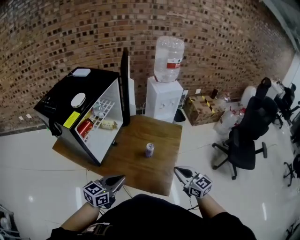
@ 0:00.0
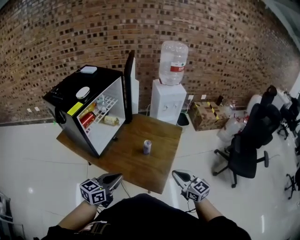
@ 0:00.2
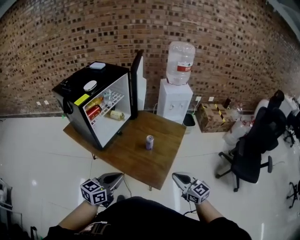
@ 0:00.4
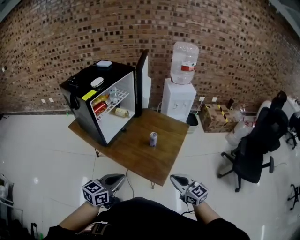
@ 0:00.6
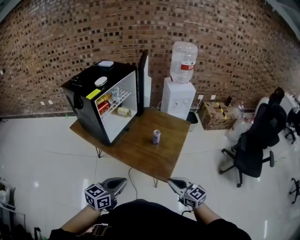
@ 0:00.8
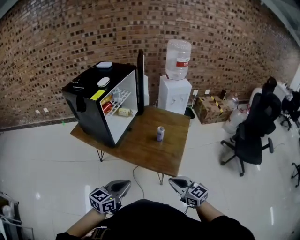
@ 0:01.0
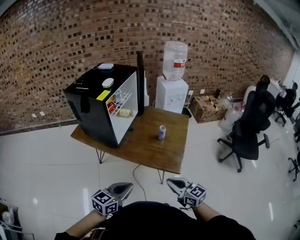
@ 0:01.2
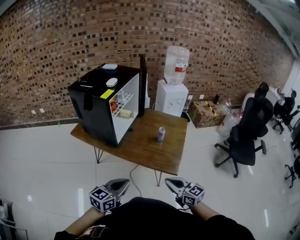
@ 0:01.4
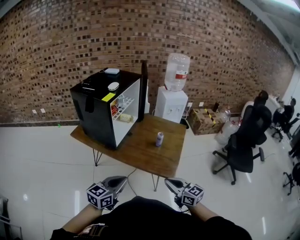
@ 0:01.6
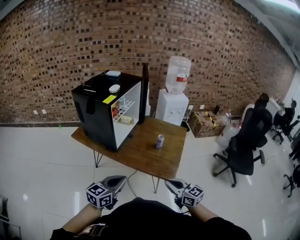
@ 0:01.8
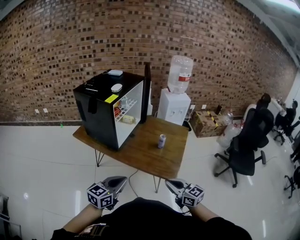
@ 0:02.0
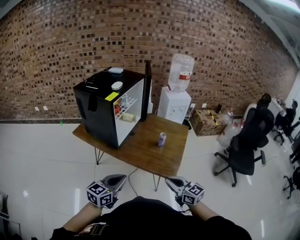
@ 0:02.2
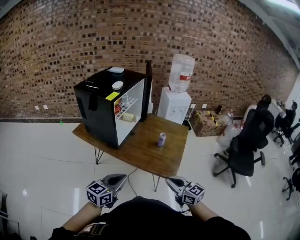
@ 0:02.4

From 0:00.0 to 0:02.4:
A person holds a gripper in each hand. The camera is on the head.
From 0:00.0 to 0:01.2: The right gripper is displaced backward and to the left by roughly 30 cm. The left gripper shifts roughly 25 cm backward.
From 0:01.2 to 0:02.4: There are only small adjustments of the grippers.

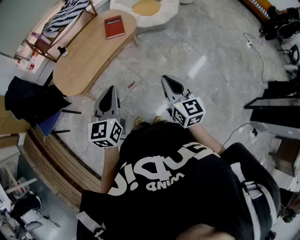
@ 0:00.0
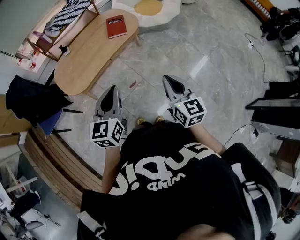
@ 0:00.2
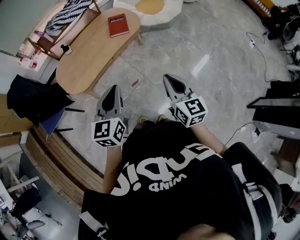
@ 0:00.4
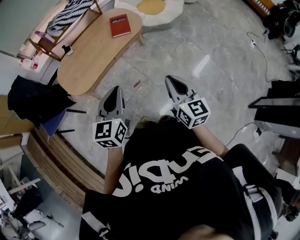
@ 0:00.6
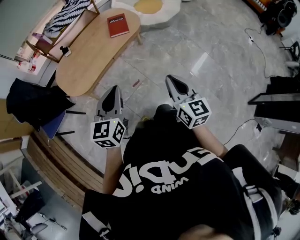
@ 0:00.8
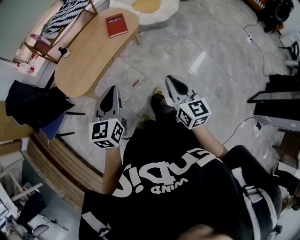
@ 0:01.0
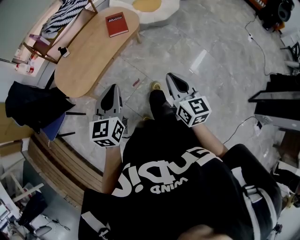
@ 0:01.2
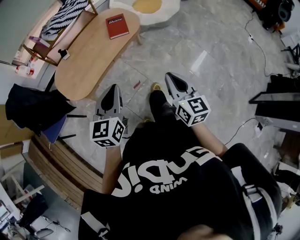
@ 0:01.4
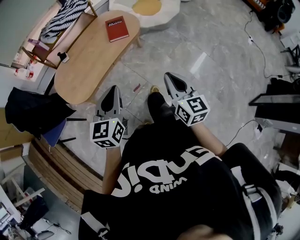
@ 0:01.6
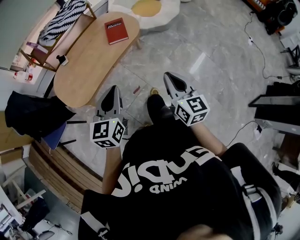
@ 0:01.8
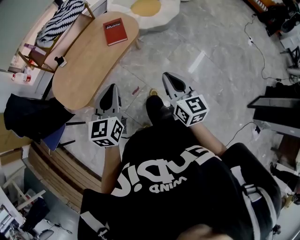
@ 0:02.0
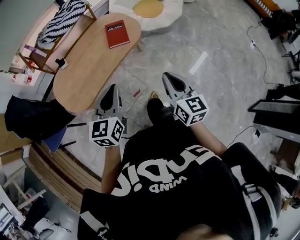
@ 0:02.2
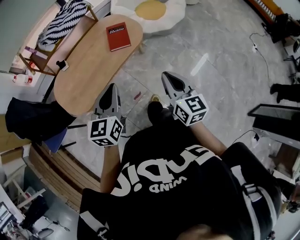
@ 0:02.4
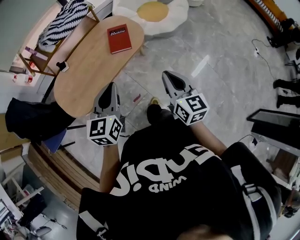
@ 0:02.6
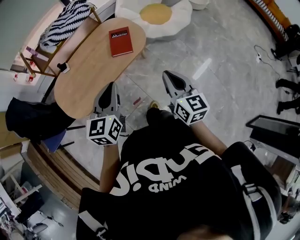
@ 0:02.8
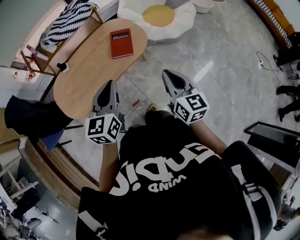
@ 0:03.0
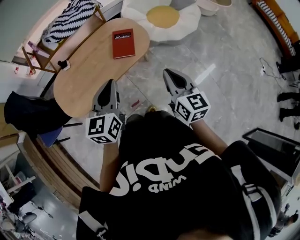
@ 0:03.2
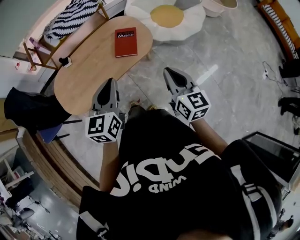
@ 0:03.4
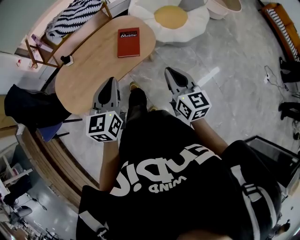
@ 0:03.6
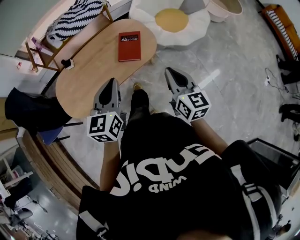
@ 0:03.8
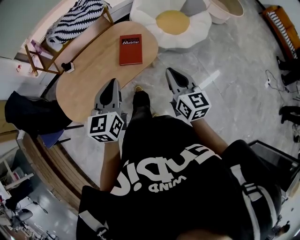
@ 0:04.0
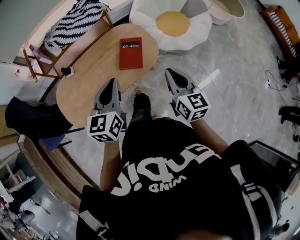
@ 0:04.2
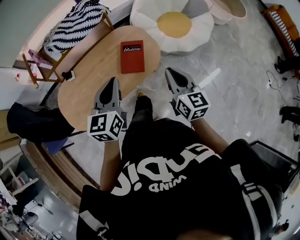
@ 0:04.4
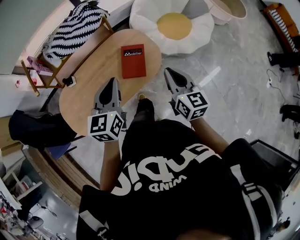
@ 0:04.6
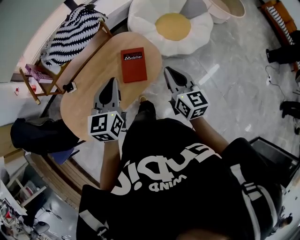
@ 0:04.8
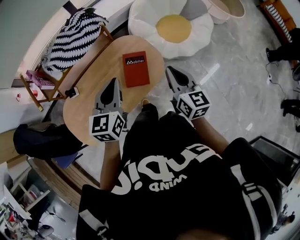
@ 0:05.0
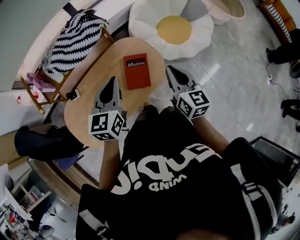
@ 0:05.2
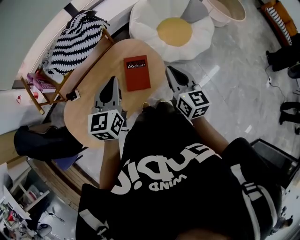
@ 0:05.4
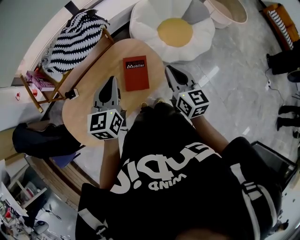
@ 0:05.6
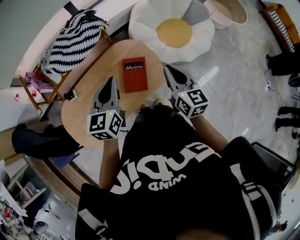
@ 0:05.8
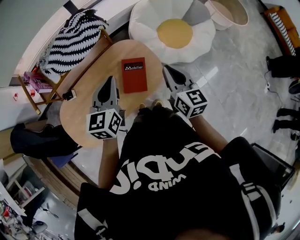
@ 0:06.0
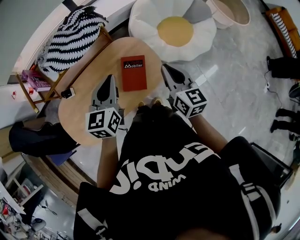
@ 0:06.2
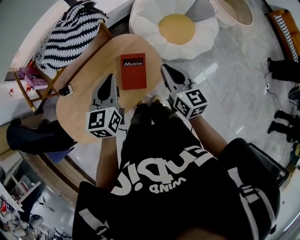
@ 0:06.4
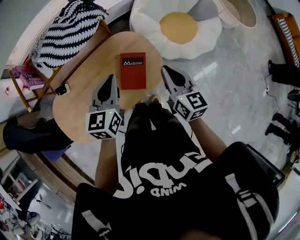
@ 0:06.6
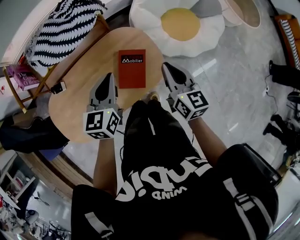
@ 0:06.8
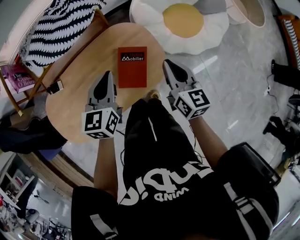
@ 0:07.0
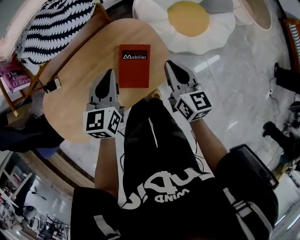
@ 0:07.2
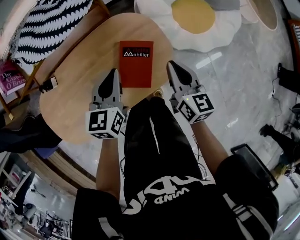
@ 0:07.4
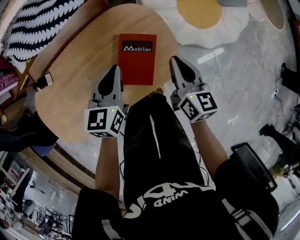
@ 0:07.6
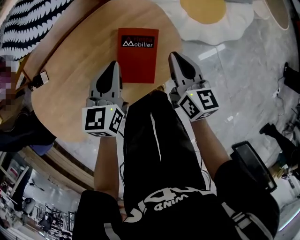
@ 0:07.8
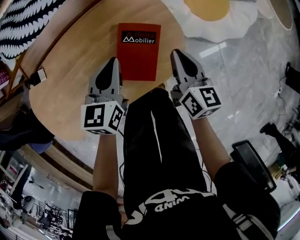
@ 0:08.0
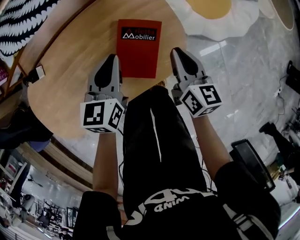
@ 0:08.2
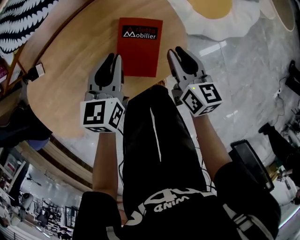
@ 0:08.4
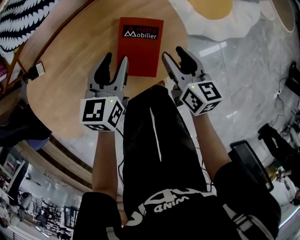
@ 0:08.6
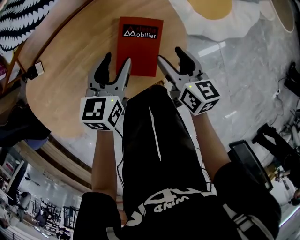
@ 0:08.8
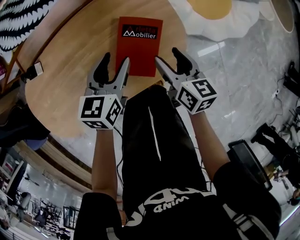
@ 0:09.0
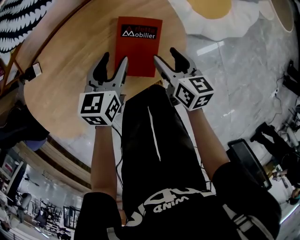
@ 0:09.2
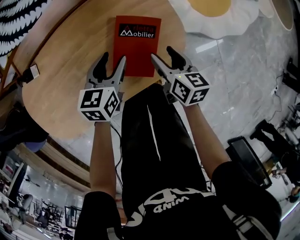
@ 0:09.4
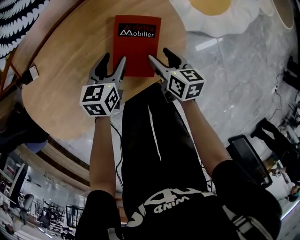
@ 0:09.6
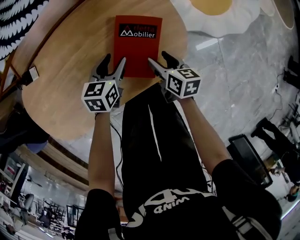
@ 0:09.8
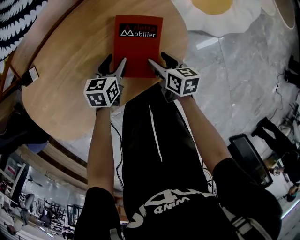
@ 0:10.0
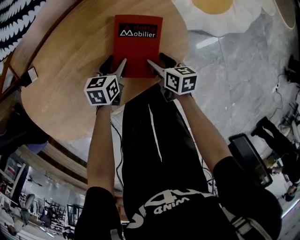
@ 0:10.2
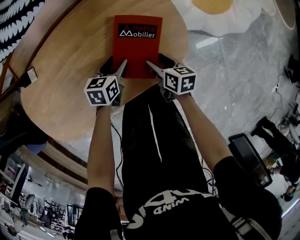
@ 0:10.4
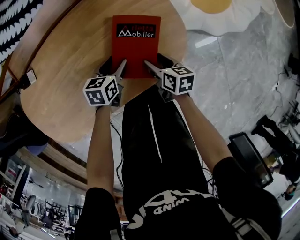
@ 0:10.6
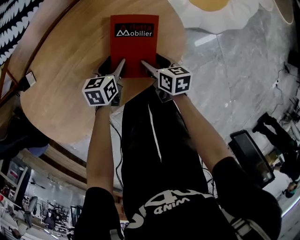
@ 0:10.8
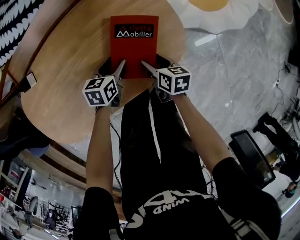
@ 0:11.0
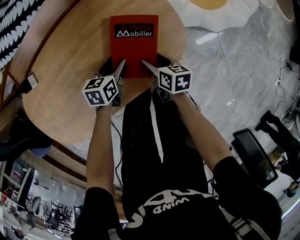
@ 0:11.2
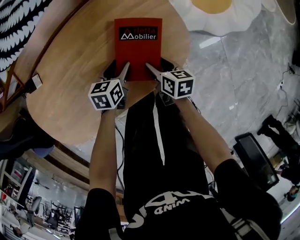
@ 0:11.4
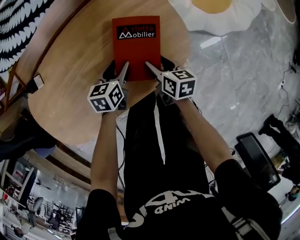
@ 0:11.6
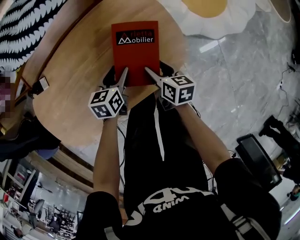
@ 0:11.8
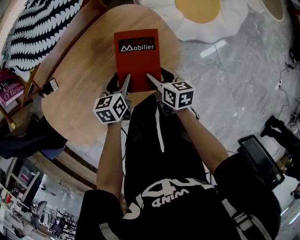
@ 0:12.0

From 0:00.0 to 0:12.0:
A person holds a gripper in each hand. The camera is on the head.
From 0:00.0 to 0:01.6: The left gripper goes about 10 cm forward and to the left; the right gripper is displaced forward by about 5 cm.
From 0:01.6 to 0:03.0: The grippers both shift forward by roughly 25 cm.
From 0:03.0 to 0:04.4: The two grippers go some 20 cm forward.
From 0:04.4 to 0:06.0: Both grippers move forward, some 15 cm.
From 0:06.0 to 0:07.6: Both grippers move downward, about 25 cm.
From 0:07.6 to 0:09.0: The grippers both shift downward by some 10 cm. The right gripper opens up, while the left gripper opens.
From 0:09.0 to 0:10.4: The grippers both shift downward by about 15 cm. The left gripper swivels about 20 degrees. The right gripper swivels about 20 degrees.
From 0:10.4 to 0:12.0: Both grippers move upward, about 10 cm.

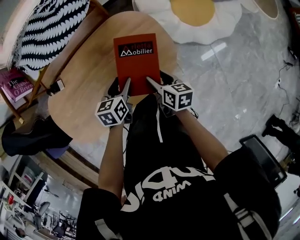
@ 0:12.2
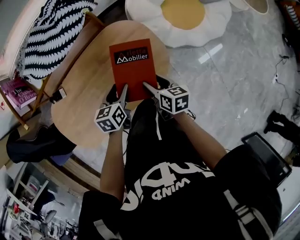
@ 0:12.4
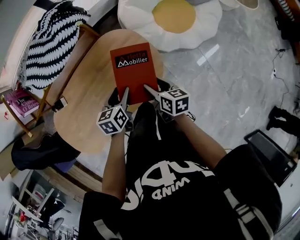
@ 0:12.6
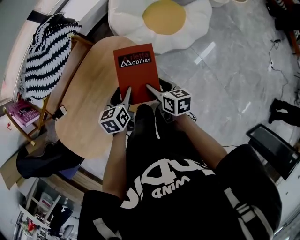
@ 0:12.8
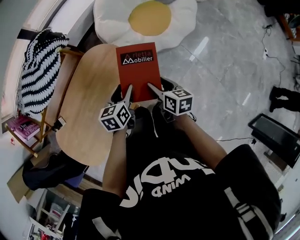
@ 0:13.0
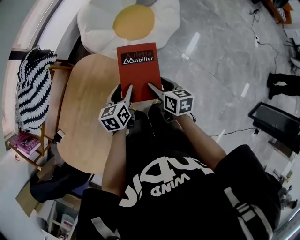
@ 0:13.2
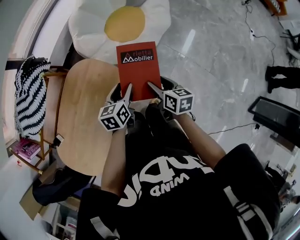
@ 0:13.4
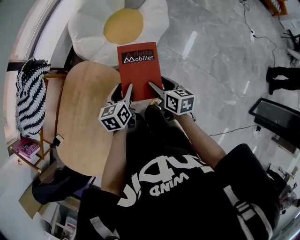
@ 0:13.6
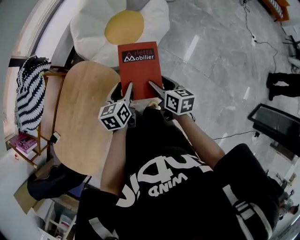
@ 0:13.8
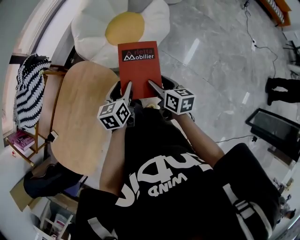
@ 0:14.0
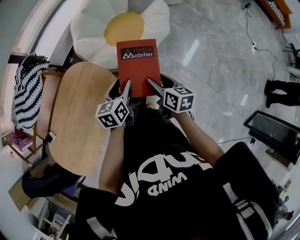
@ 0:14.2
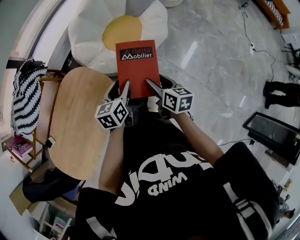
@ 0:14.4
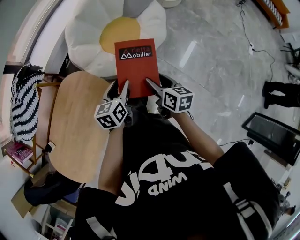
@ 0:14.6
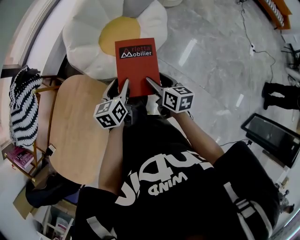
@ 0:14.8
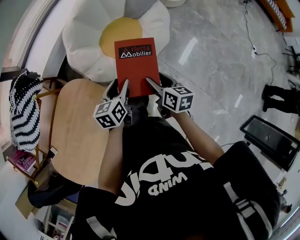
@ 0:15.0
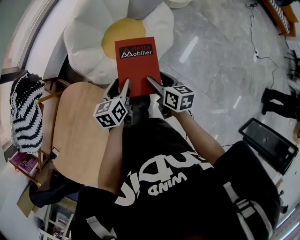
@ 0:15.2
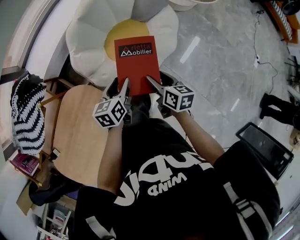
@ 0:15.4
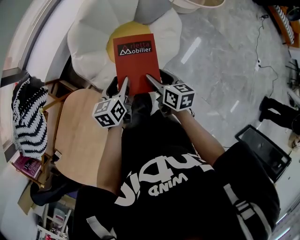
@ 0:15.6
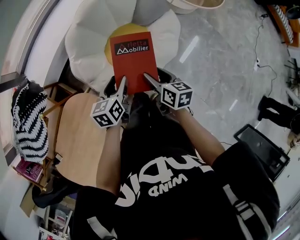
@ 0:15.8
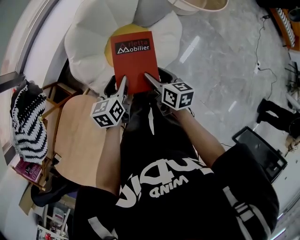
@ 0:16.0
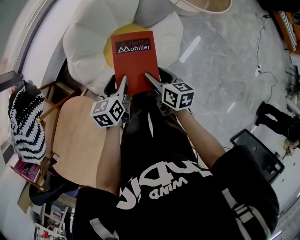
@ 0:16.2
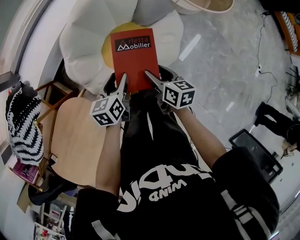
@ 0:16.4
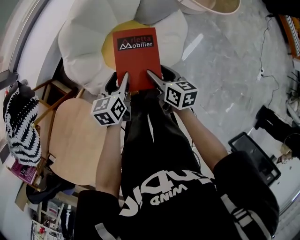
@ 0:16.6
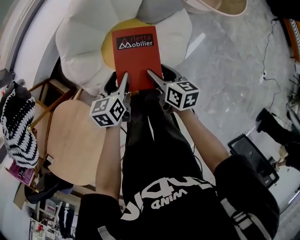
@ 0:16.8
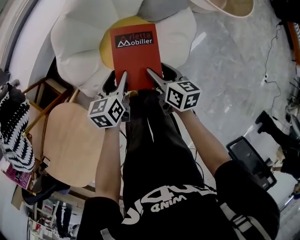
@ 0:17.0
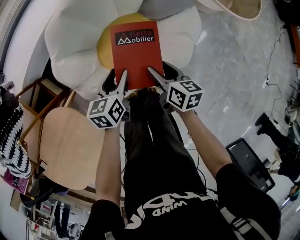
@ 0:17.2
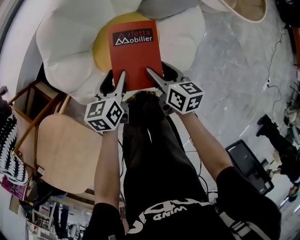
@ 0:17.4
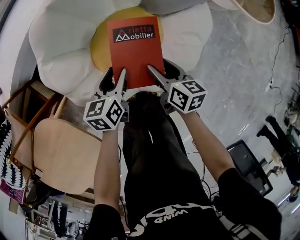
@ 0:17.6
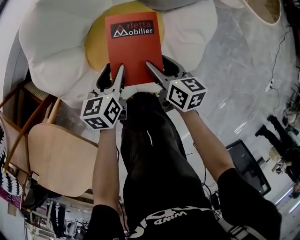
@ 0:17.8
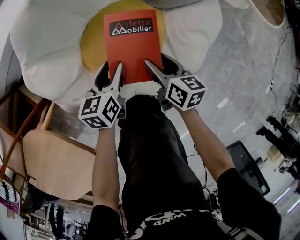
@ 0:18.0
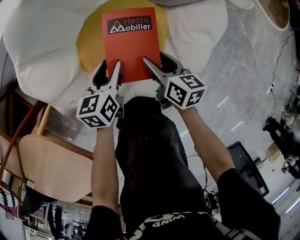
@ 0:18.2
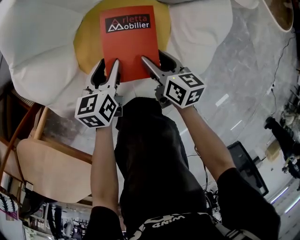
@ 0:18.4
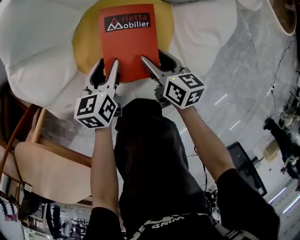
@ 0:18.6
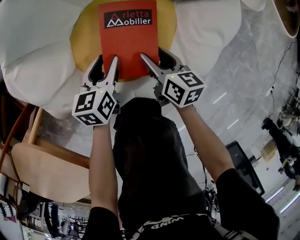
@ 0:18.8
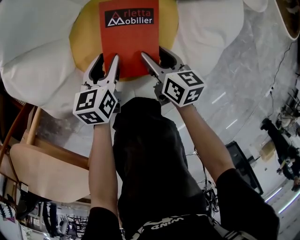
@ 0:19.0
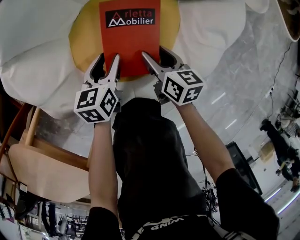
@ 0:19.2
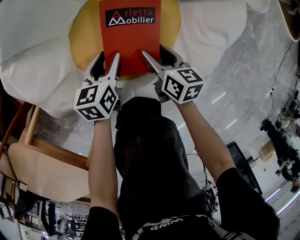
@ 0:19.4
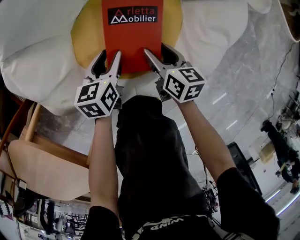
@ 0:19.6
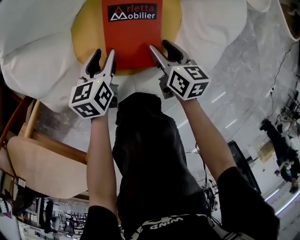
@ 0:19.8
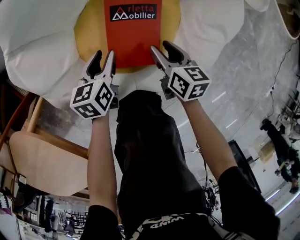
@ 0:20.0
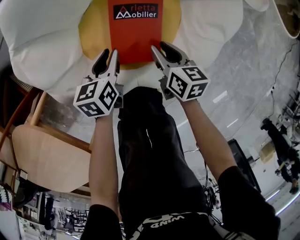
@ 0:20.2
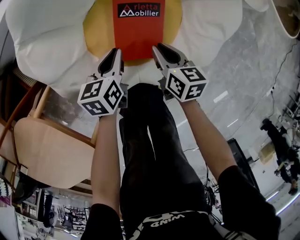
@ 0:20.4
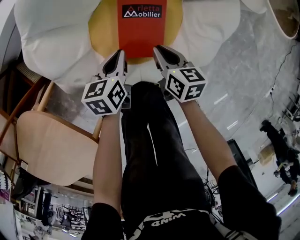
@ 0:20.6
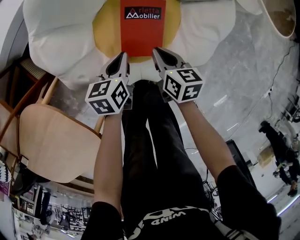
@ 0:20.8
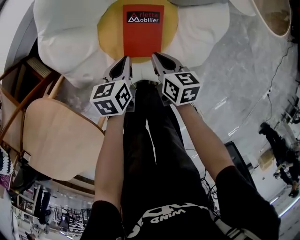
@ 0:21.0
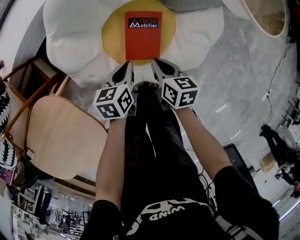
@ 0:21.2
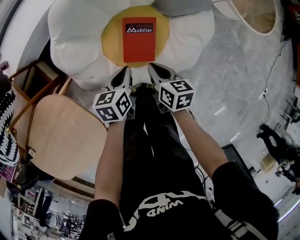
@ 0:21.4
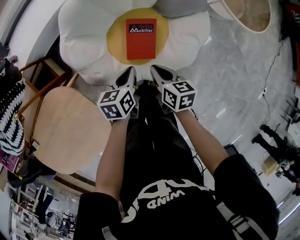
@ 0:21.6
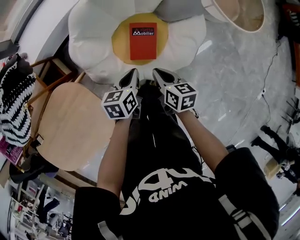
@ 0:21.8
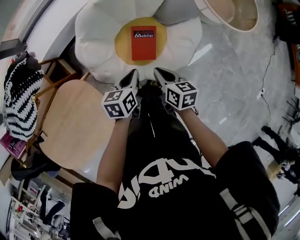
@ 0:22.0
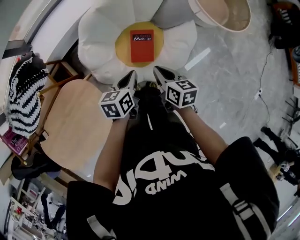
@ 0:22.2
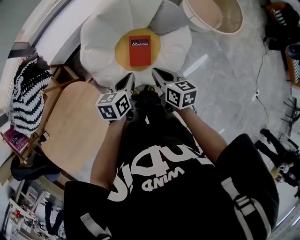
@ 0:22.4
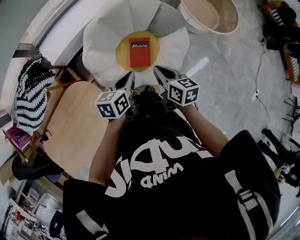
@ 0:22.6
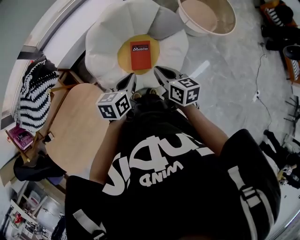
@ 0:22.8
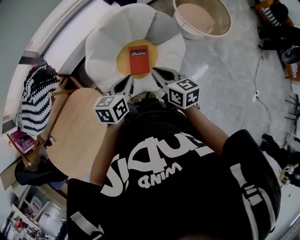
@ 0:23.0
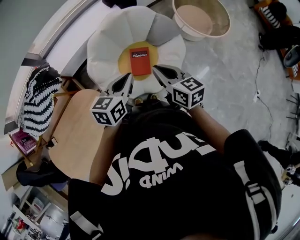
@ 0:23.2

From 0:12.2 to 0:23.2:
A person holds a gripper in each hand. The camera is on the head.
From 0:12.2 to 0:13.8: The left gripper ends up some 35 cm from where it was, and turns by some 20 degrees. The right gripper changes place by some 35 cm, and changes its angle by some 30 degrees.
From 0:13.8 to 0:15.4: Both grippers travel together forward, approximately 25 cm.
From 0:15.4 to 0:17.0: Both grippers move forward and downward, roughly 25 cm.
From 0:17.0 to 0:18.4: The two grippers go approximately 30 cm downward.
From 0:18.4 to 0:20.0: There are only small adjustments of the grippers.
From 0:20.0 to 0:21.6: Both grippers travel together upward, approximately 30 cm. The left gripper closes up. Meanwhile the right gripper closes.
From 0:21.6 to 0:23.2: Both grippers move upward, approximately 35 cm. The left gripper turns by approximately 30 degrees; the right gripper turns by some 30 degrees.
